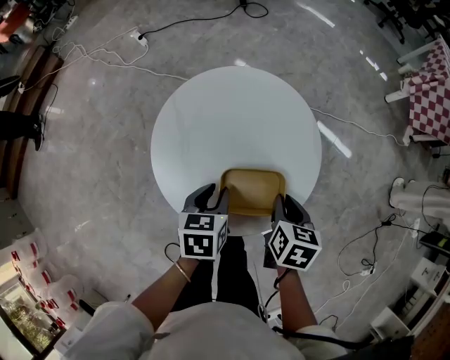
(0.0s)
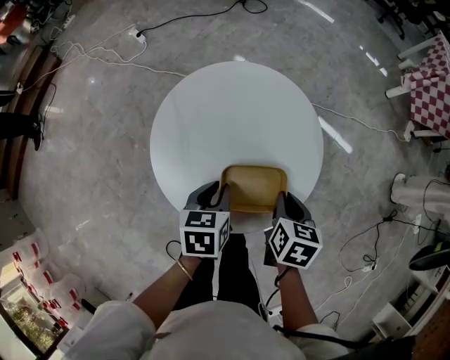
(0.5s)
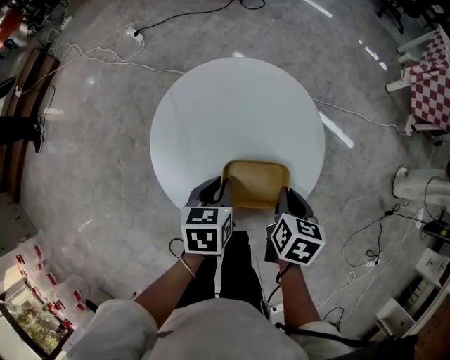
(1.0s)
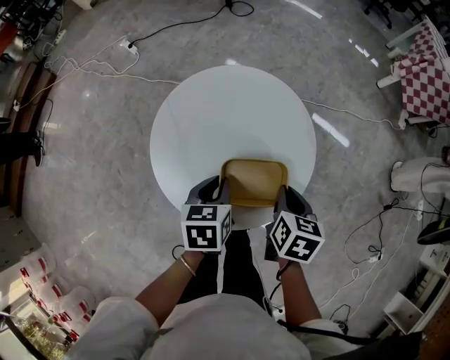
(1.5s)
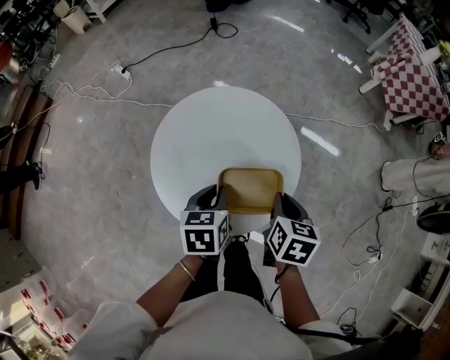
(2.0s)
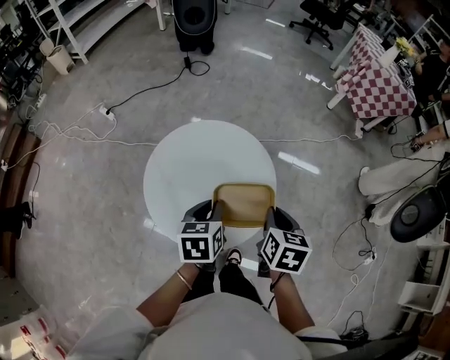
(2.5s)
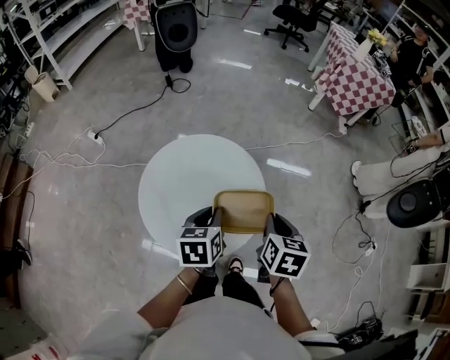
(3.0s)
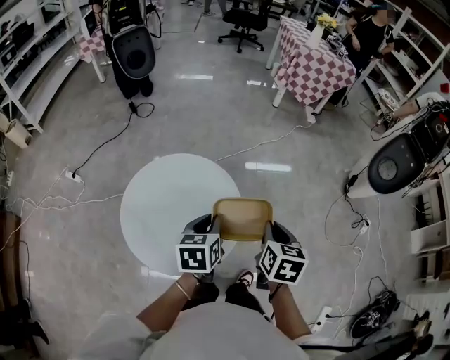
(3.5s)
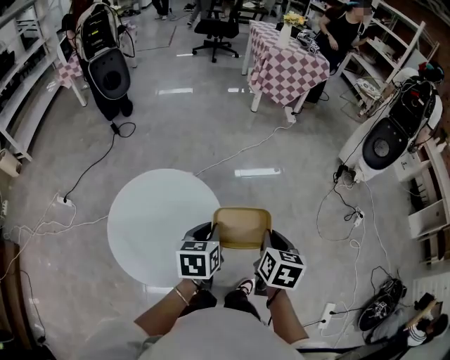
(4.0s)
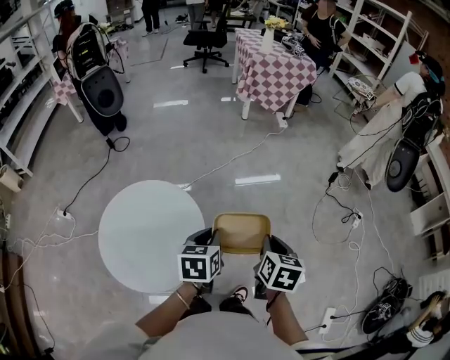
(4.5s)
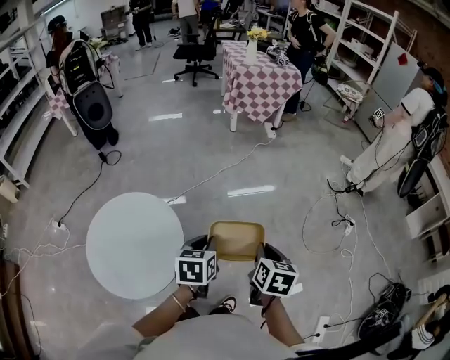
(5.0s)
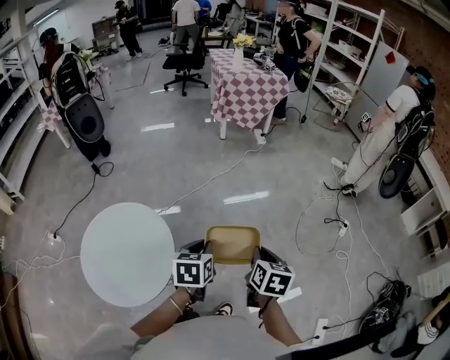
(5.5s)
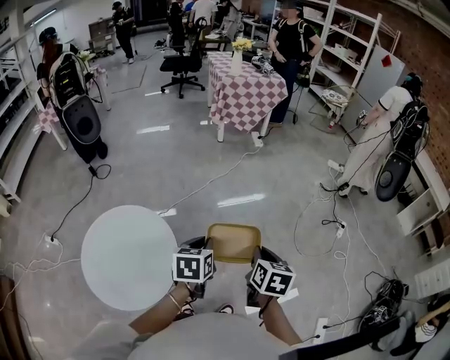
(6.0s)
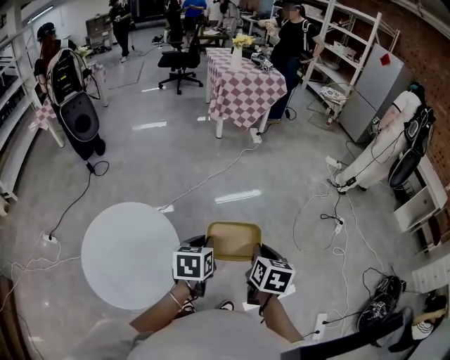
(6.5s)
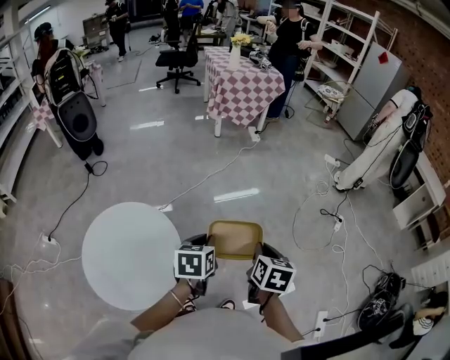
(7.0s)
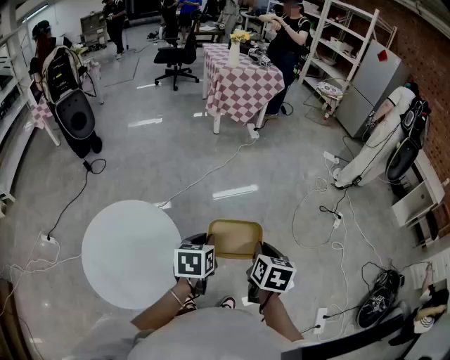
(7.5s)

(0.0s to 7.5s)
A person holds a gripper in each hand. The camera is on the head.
0.0s - 2.0s: The right gripper heads upward, covering some 5 cm.
2.0s - 4.0s: The left gripper moves approximately 20 cm, and turns by roughly 40 degrees, while the right gripper ends up roughly 20 cm from where it was, and changes its angle by about 40 degrees.
4.0s - 5.5s: Both grippers move to the right, some 15 cm.
5.5s - 7.5s: The grippers move only a little.

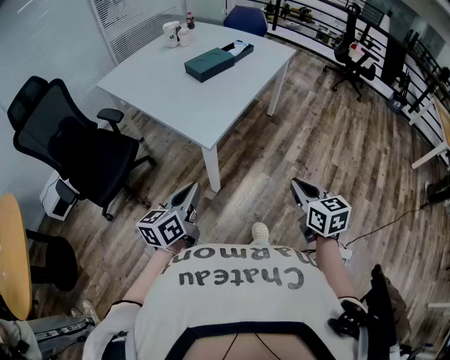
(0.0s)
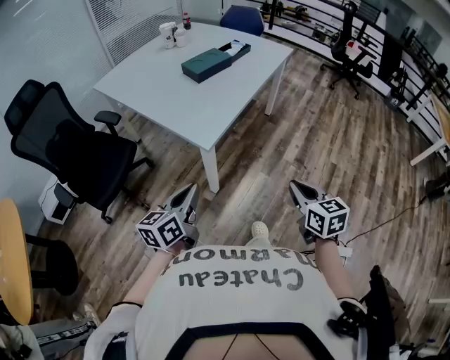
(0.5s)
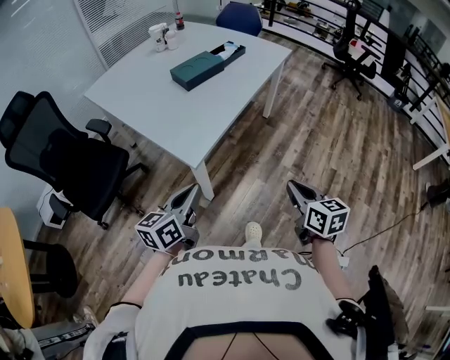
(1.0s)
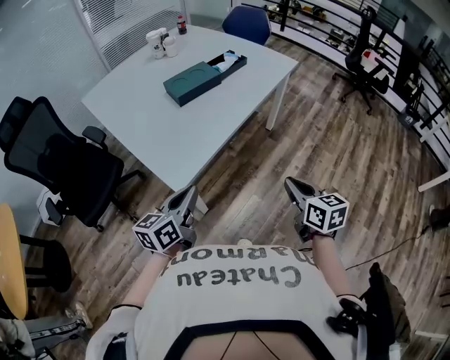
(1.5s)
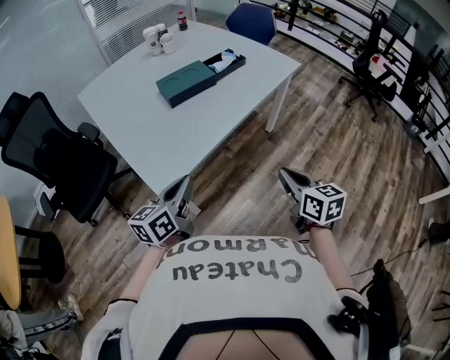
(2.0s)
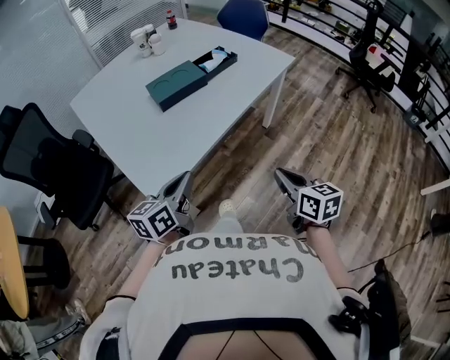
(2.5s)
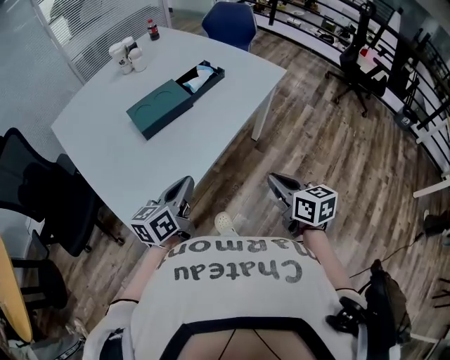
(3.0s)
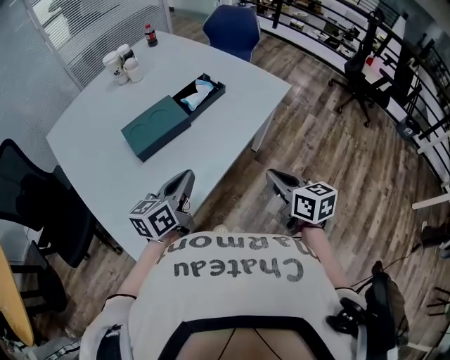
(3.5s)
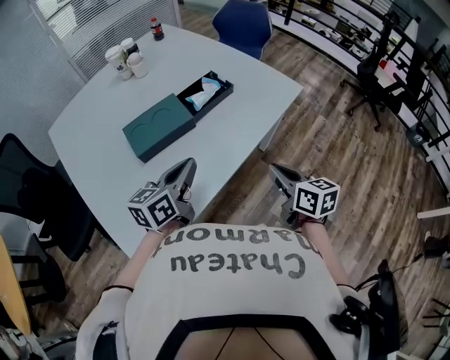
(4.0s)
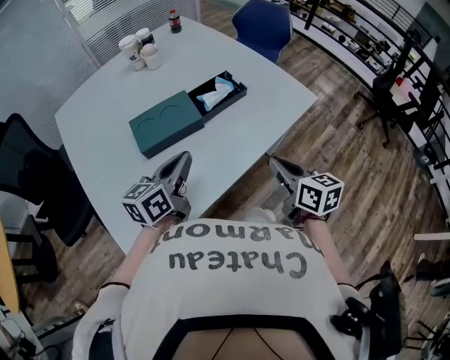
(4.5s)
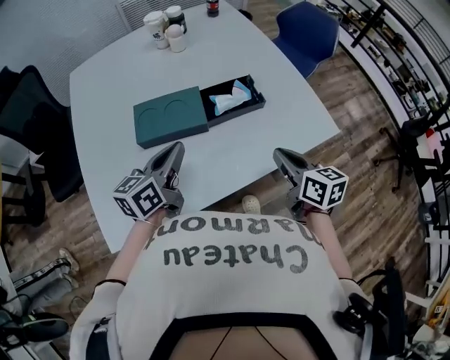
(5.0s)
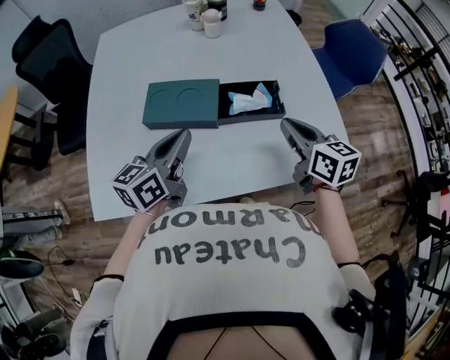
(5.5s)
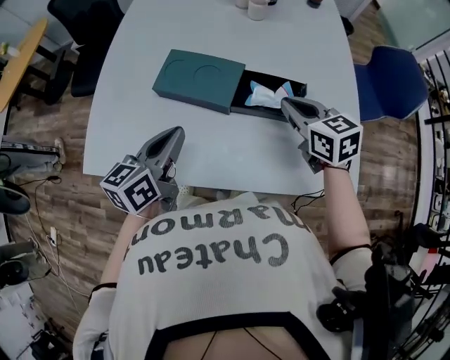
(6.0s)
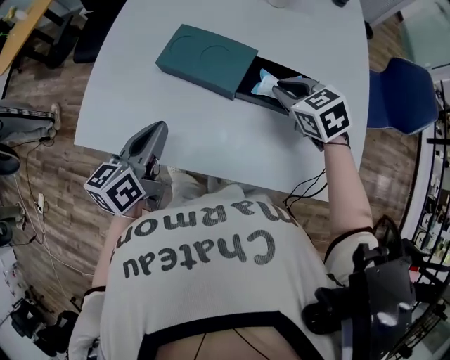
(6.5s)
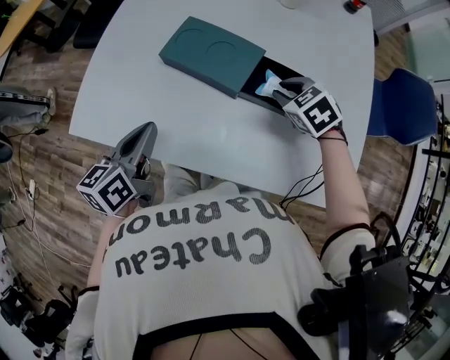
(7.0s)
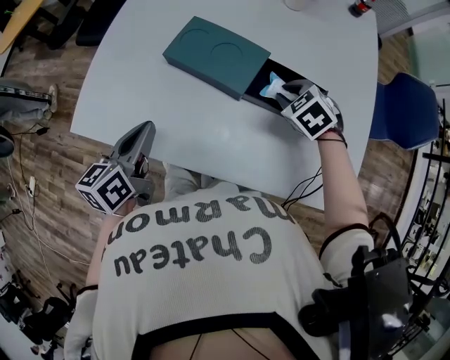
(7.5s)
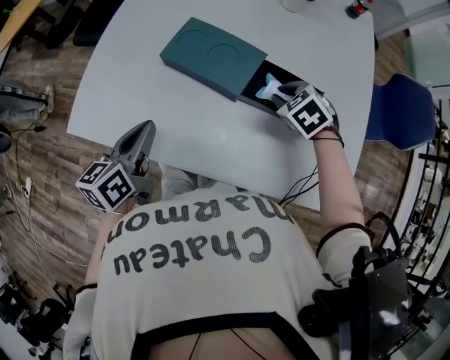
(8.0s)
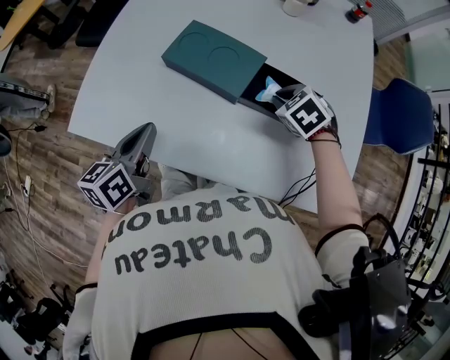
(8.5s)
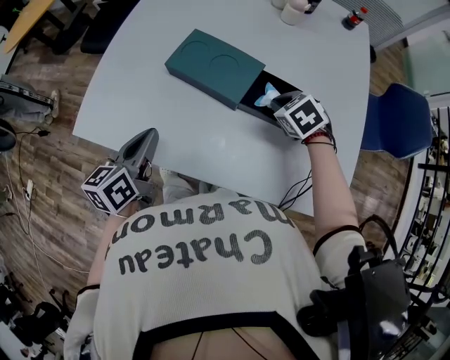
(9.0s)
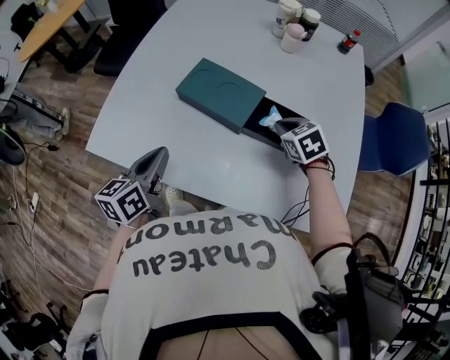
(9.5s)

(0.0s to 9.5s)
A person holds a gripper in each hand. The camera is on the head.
0.0s - 2.0s: Both grippers move forward and to the right, approximately 30 cm.
2.0s - 4.0s: Both grippers move forward, roughly 30 cm.
4.0s - 5.5s: The left gripper ends up about 10 cm from where it was, and rotates about 30 degrees; the right gripper changes place by roughly 30 cm, and changes its angle by roughly 40 degrees.
5.5s - 7.5s: The left gripper changes place by roughly 15 cm, and turns by approximately 40 degrees, while the right gripper shifts by about 20 cm, and points its fingers approximately 40 degrees further downward.
7.5s - 9.5s: There are only small adjustments of the grippers.

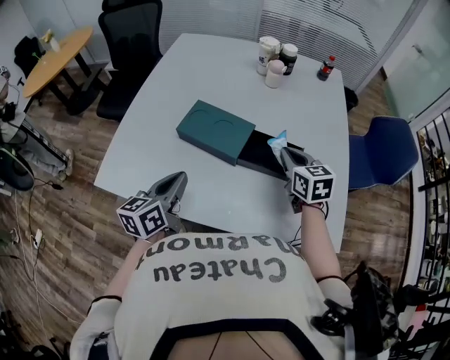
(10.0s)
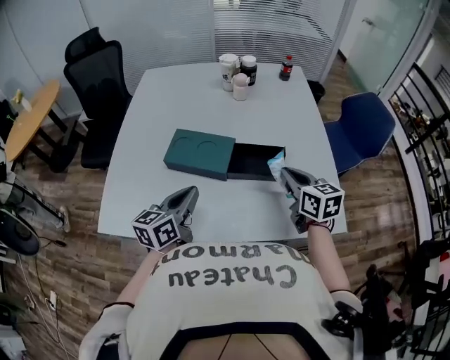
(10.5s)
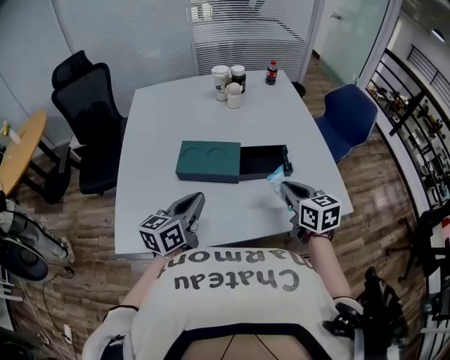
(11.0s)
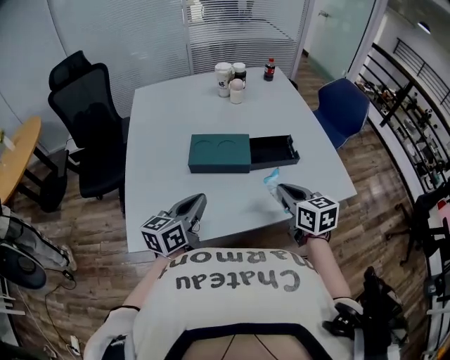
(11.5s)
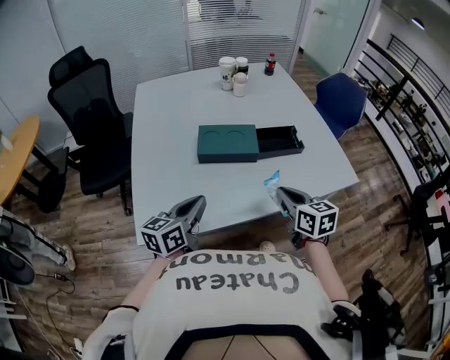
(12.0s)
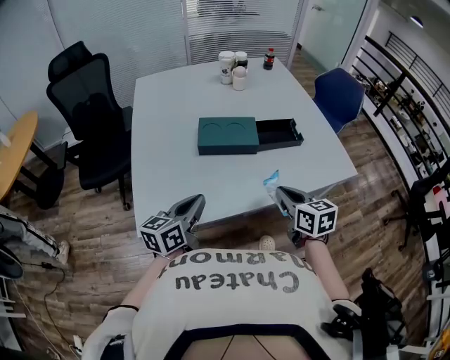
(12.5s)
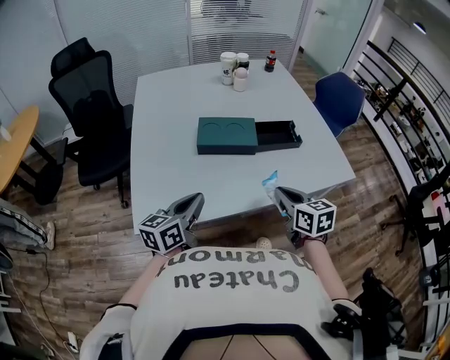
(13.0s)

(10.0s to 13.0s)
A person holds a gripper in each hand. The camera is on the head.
10.0s - 11.5s: The left gripper goes some 5 cm to the left, and swivels roughly 30 degrees, while the right gripper moves backward, about 20 cm, and swivels about 20 degrees.
11.5s - 13.0s: The grippers both shift backward by roughly 5 cm.

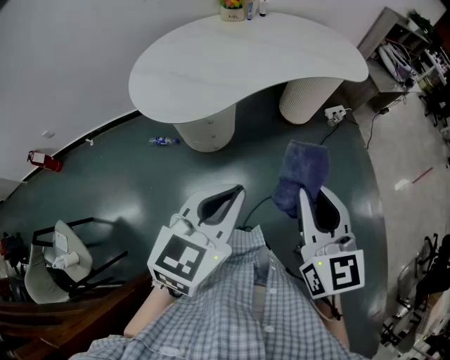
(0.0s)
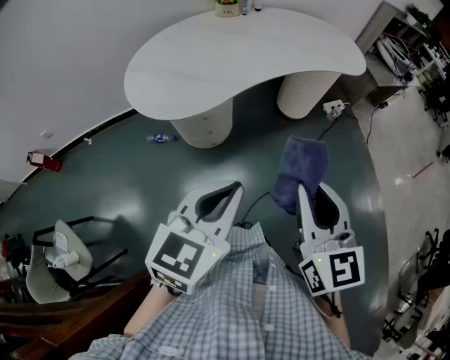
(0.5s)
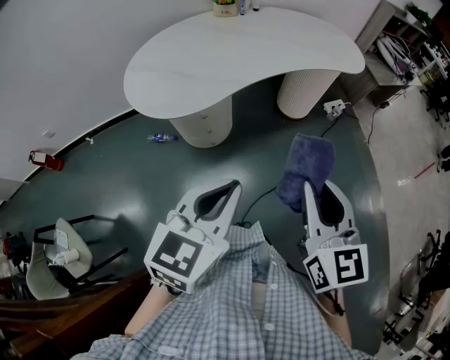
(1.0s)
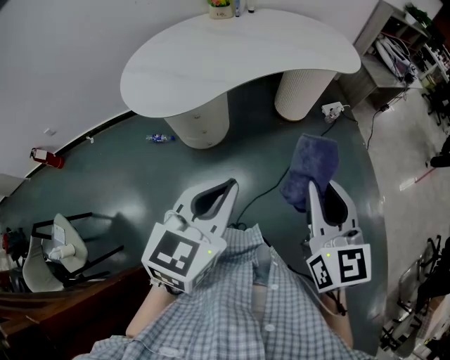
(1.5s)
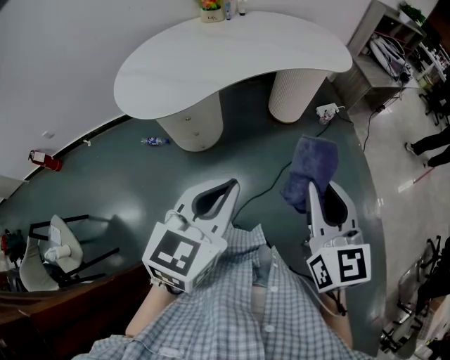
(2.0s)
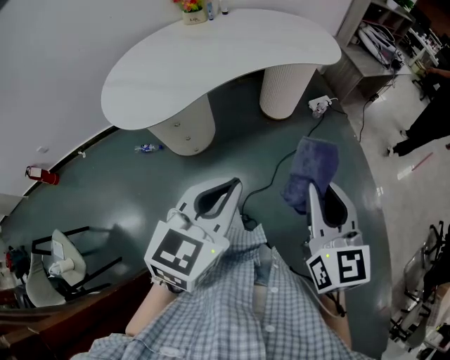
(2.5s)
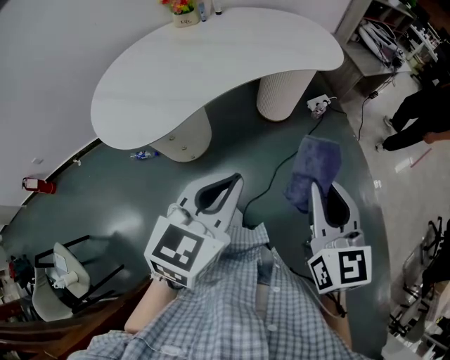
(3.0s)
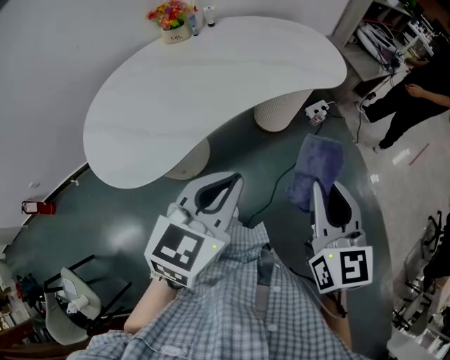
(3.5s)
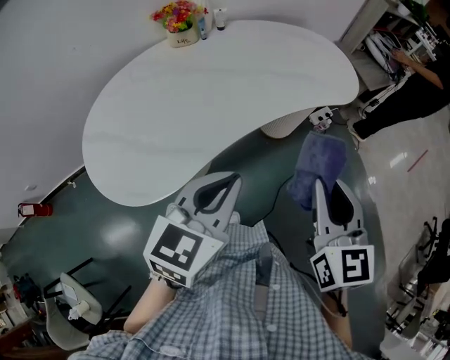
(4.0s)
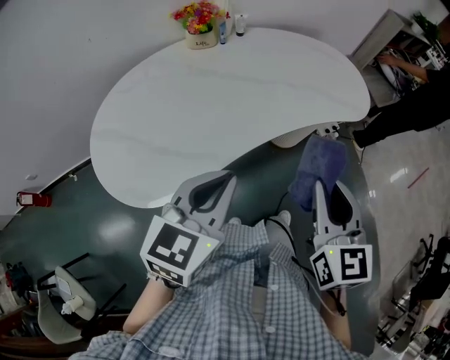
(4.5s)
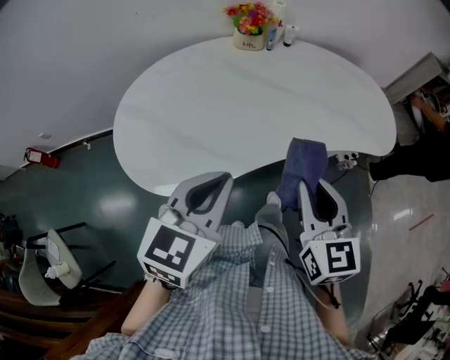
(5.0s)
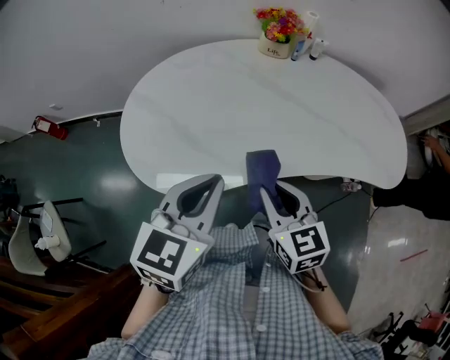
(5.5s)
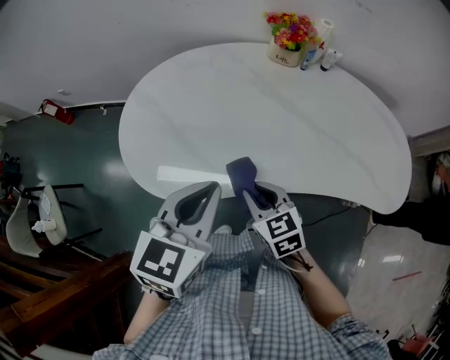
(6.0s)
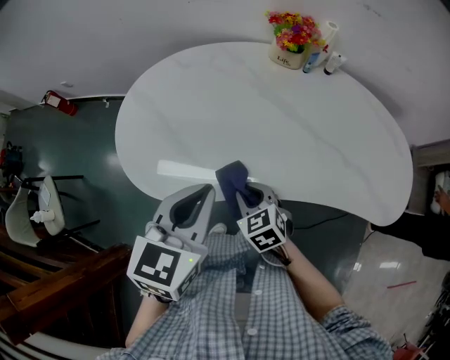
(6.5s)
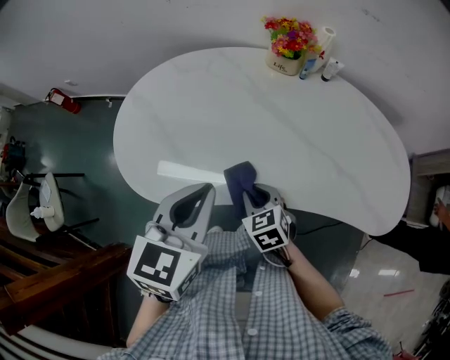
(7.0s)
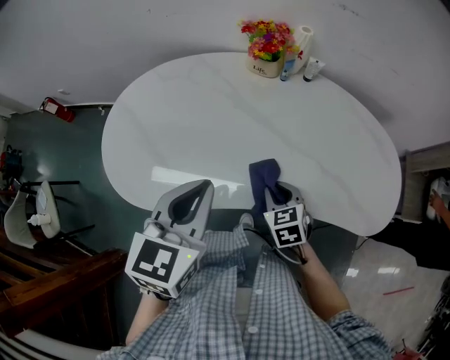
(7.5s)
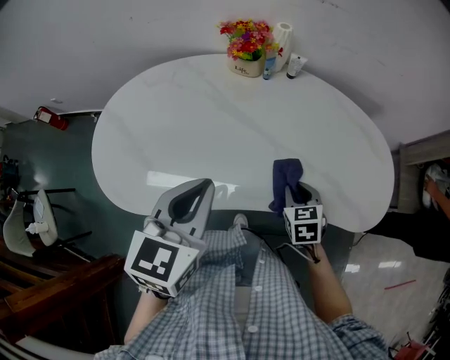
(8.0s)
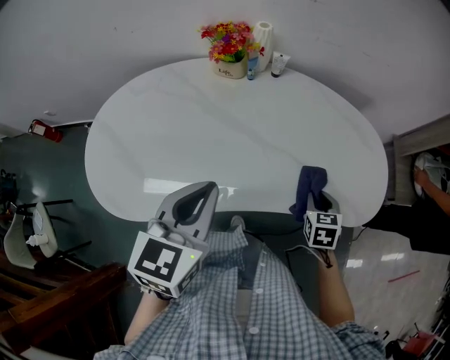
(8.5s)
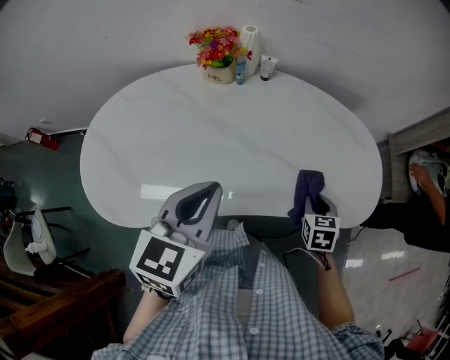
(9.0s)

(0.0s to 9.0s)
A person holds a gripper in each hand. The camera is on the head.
0.0s - 2.0s: Both grippers move to the right, some 10 cm.
2.0s - 4.5s: Both grippers travel together forward and to the left, about 35 cm.
4.5s - 7.0s: The left gripper shifts by roughly 10 cm, and turns by roughly 40 degrees, while the right gripper goes approximately 25 cm downward, and tips its fingers downward by approximately 30 degrees.
7.0s - 9.0s: The left gripper changes place by roughly 15 cm. Meanwhile the right gripper shifts by some 35 cm, and changes its angle by roughly 40 degrees.
